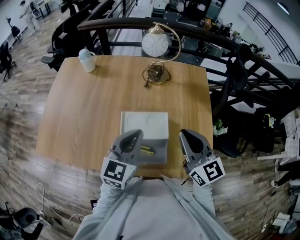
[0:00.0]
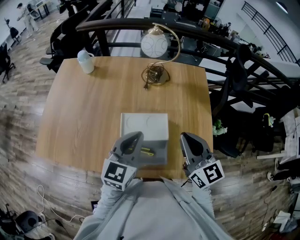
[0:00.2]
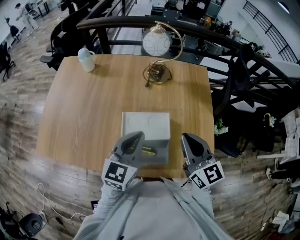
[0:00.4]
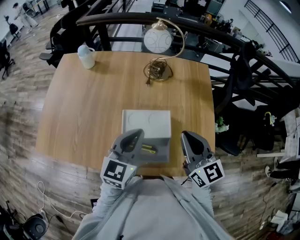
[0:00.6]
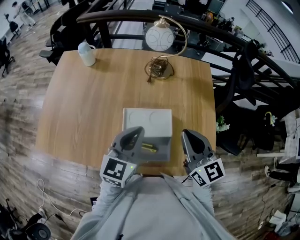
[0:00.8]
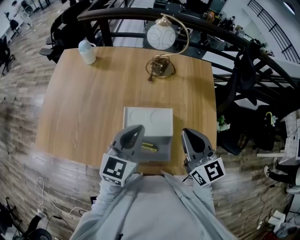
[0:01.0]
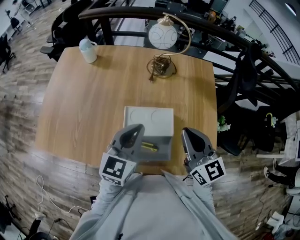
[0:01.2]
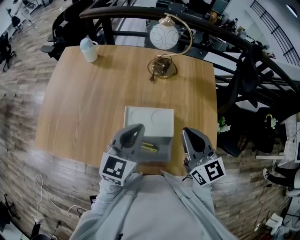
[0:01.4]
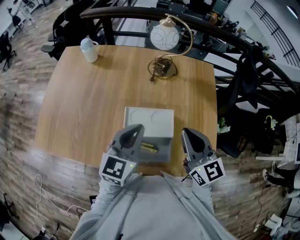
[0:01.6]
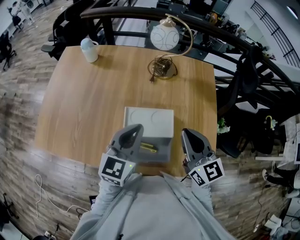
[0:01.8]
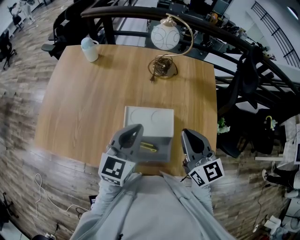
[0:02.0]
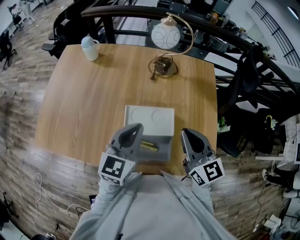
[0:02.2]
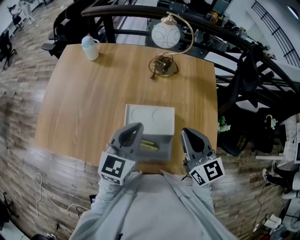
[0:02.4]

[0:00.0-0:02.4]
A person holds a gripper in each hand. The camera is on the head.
0:00.0 to 0:01.2: The grippers stay close to where they were, moving slightly.
0:01.2 to 0:02.4: The two grippers keep their place.

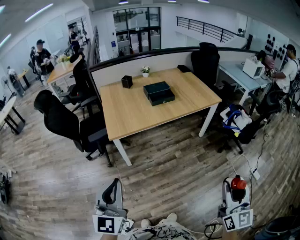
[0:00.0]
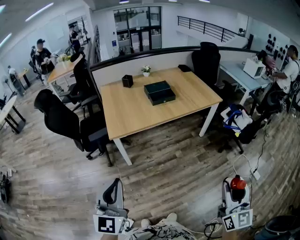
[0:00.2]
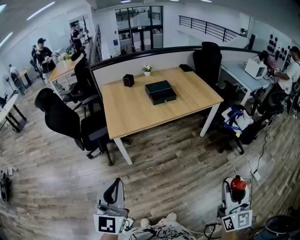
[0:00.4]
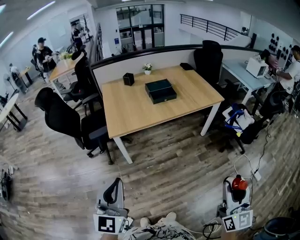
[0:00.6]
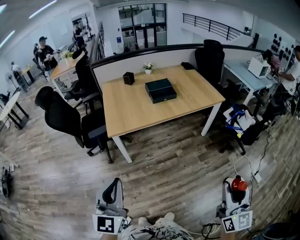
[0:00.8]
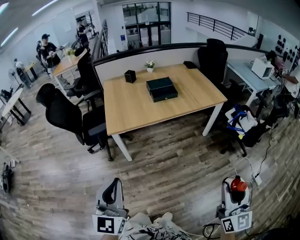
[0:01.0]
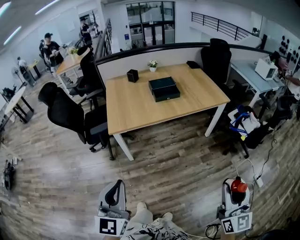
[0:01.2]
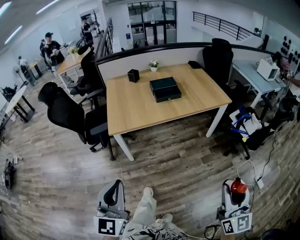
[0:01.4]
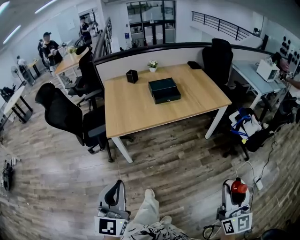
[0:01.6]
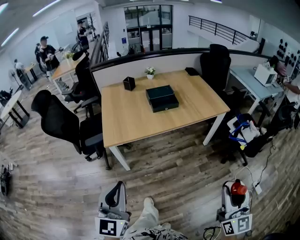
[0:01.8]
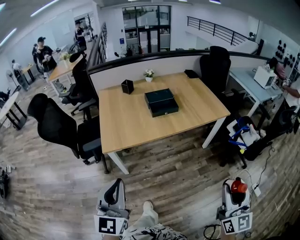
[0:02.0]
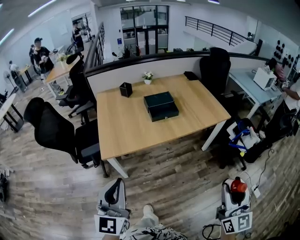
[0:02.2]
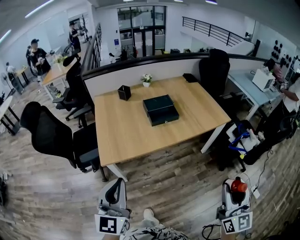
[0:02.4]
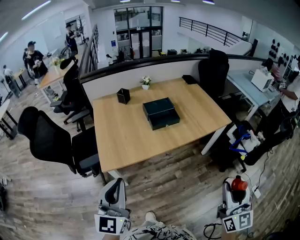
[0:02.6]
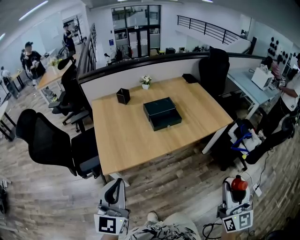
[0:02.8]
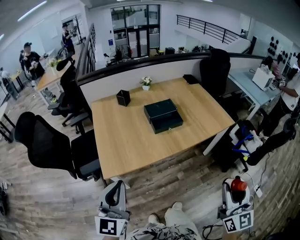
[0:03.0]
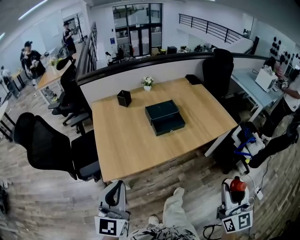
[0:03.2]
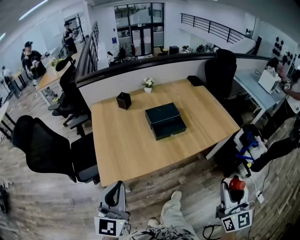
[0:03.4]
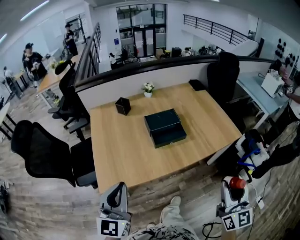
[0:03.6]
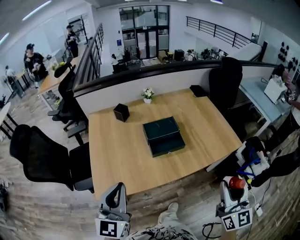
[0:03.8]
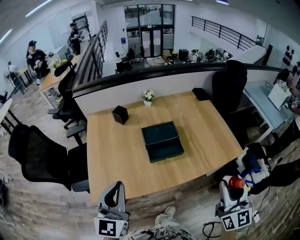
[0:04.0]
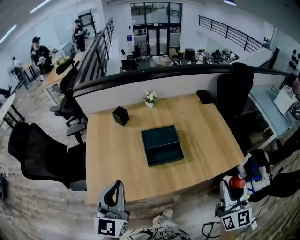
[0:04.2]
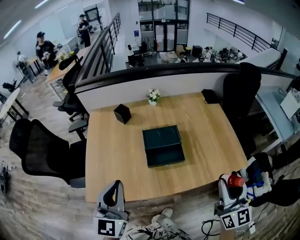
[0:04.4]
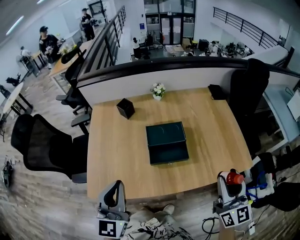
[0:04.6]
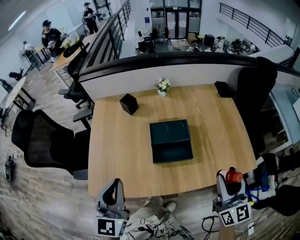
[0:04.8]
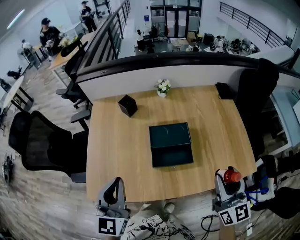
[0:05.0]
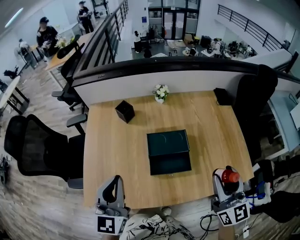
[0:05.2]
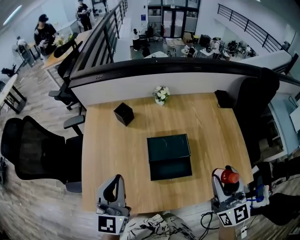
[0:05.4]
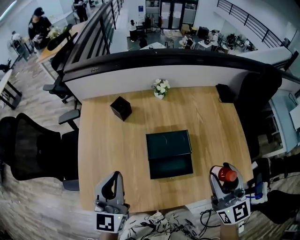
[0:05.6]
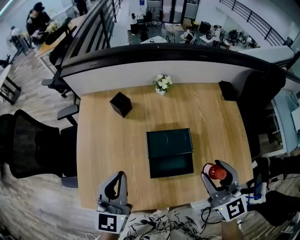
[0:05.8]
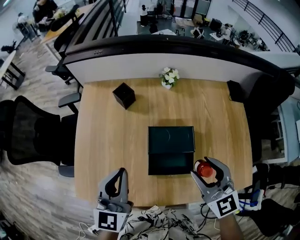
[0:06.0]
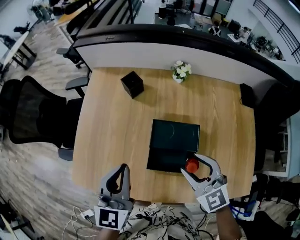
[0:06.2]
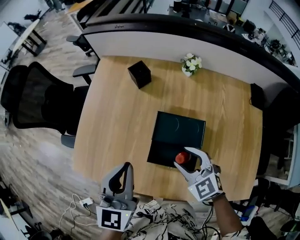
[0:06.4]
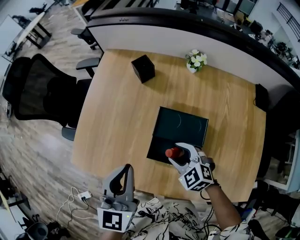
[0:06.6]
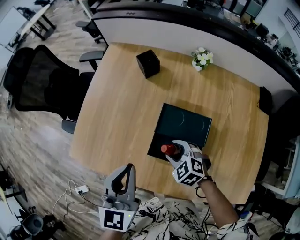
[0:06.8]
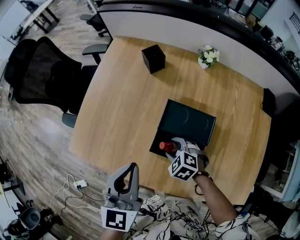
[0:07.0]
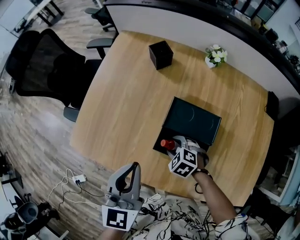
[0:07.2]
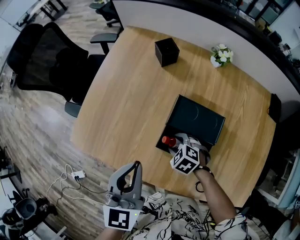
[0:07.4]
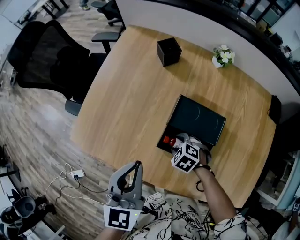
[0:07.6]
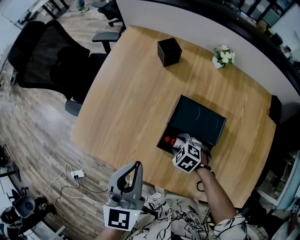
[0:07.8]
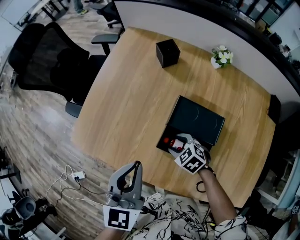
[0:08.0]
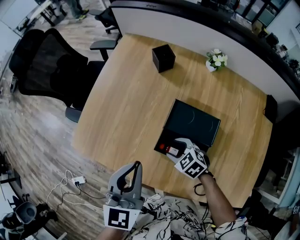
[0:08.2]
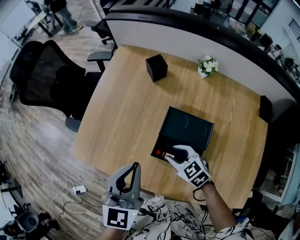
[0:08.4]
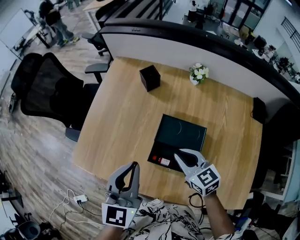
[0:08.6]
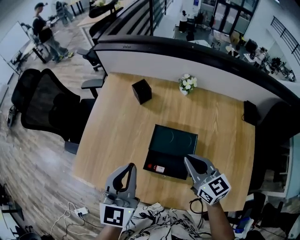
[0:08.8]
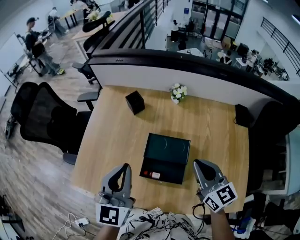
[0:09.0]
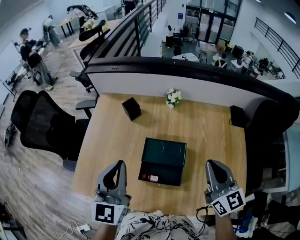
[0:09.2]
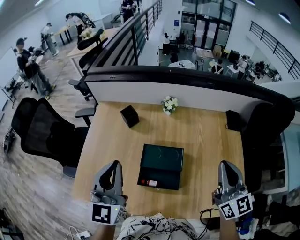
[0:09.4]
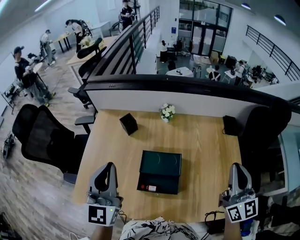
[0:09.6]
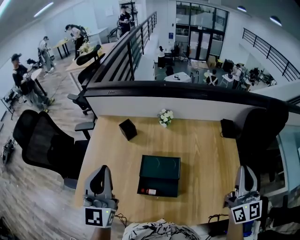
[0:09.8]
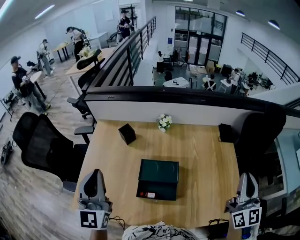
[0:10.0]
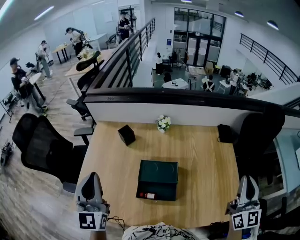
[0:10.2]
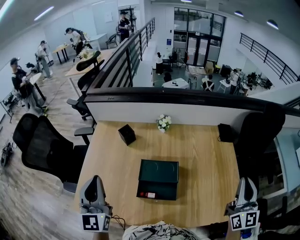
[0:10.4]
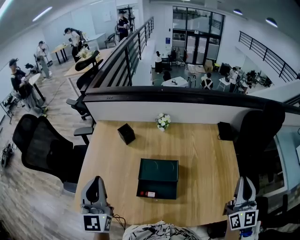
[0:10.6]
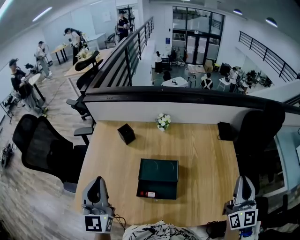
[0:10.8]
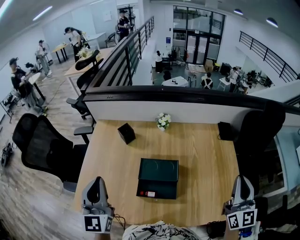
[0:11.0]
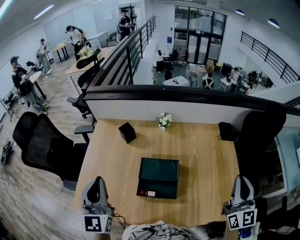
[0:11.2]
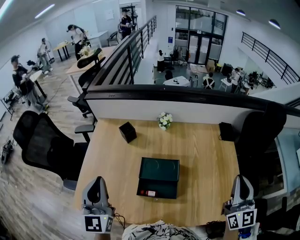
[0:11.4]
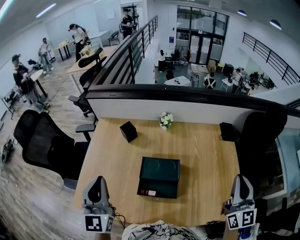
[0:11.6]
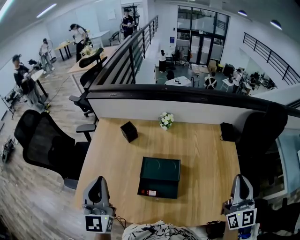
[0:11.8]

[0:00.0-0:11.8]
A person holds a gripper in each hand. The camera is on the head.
0:00.0 to 0:01.4: The right gripper shifts approximately 10 cm forward and to the right. Meanwhile the left gripper goes roughly 5 cm to the right.
0:01.4 to 0:03.0: Both grippers move forward, roughly 30 cm.
0:03.0 to 0:04.4: The grippers both shift forward by approximately 35 cm.
0:04.4 to 0:06.0: The right gripper moves forward and to the left, about 30 cm, and rotates about 40 degrees. Meanwhile the left gripper is displaced forward and downward by about 20 cm.
0:06.0 to 0:07.4: The left gripper changes place by some 10 cm, and changes its angle by roughly 20 degrees. Meanwhile the right gripper travels downward by about 30 cm, and tilts its fingers some 50 degrees downward.
0:07.4 to 0:08.8: The right gripper moves upward and to the right, about 30 cm, angles its fingers upward, by about 50 degrees, and closes. Meanwhile the left gripper moves upward and to the right, roughly 10 cm.
0:08.8 to 0:10.4: The left gripper goes approximately 10 cm upward and to the left. The right gripper is displaced to the right, upward and backward by about 35 cm, and turns by roughly 50 degrees.
0:10.4 to 0:11.8: The grippers stay close to where they were, moving slightly.

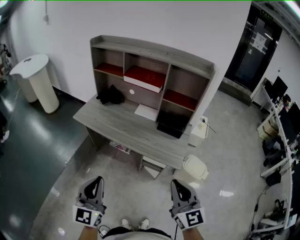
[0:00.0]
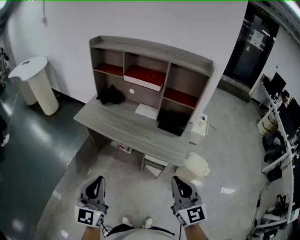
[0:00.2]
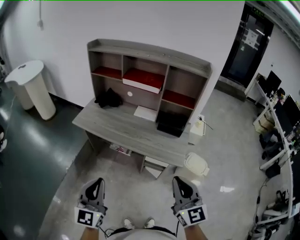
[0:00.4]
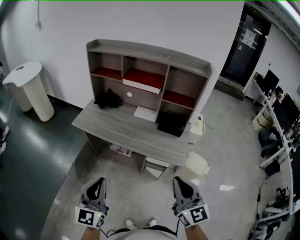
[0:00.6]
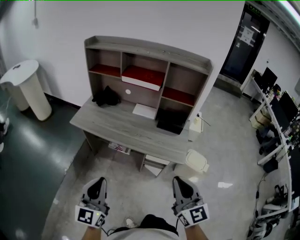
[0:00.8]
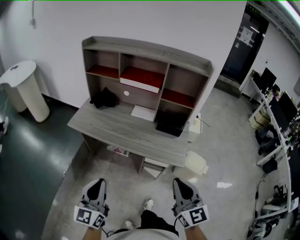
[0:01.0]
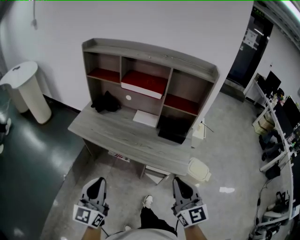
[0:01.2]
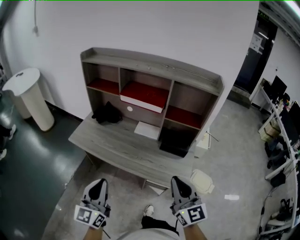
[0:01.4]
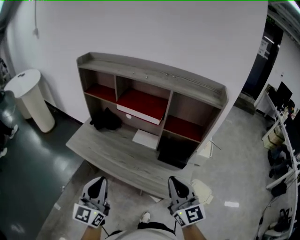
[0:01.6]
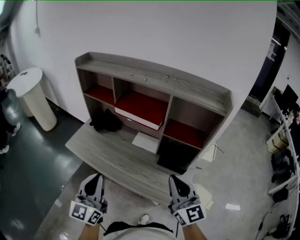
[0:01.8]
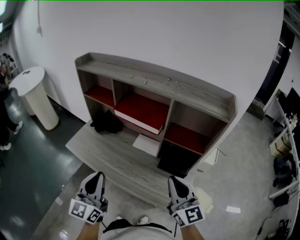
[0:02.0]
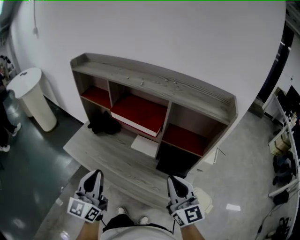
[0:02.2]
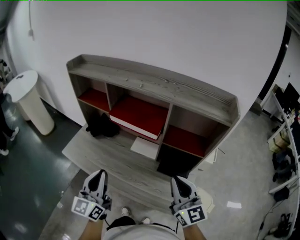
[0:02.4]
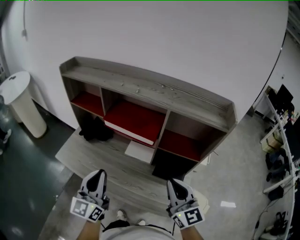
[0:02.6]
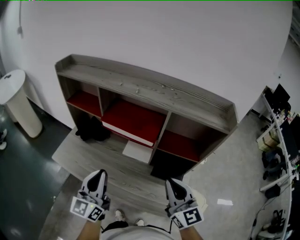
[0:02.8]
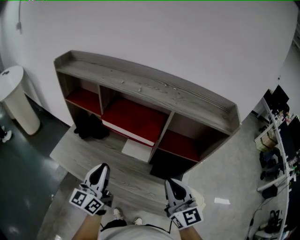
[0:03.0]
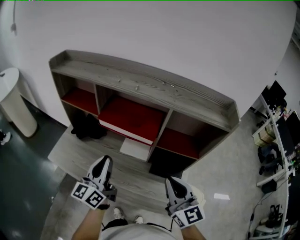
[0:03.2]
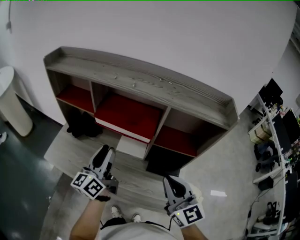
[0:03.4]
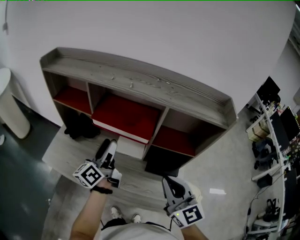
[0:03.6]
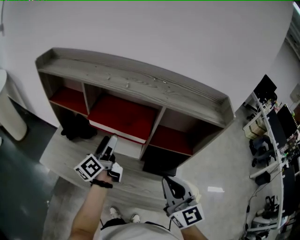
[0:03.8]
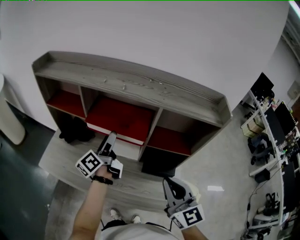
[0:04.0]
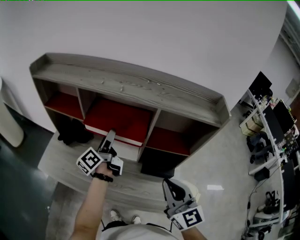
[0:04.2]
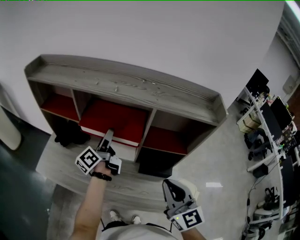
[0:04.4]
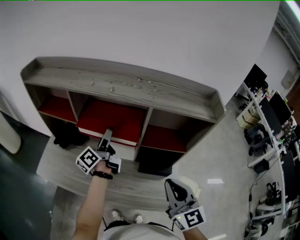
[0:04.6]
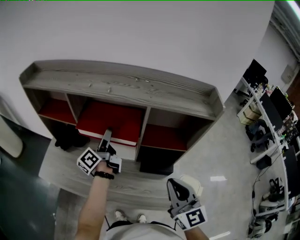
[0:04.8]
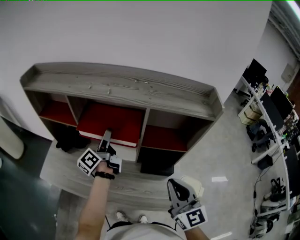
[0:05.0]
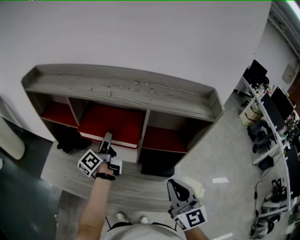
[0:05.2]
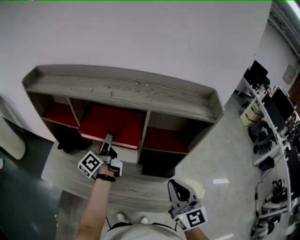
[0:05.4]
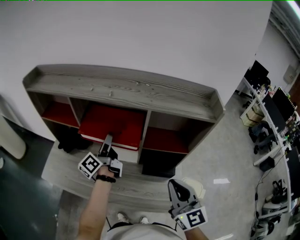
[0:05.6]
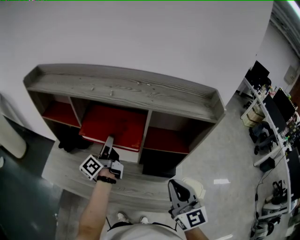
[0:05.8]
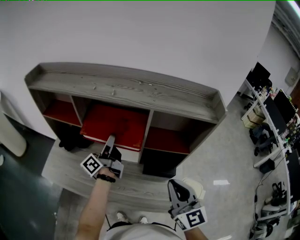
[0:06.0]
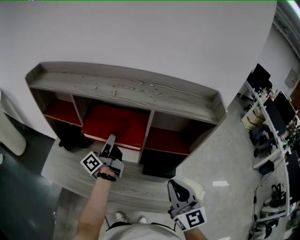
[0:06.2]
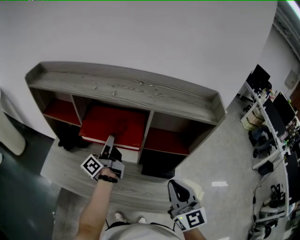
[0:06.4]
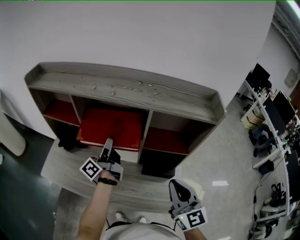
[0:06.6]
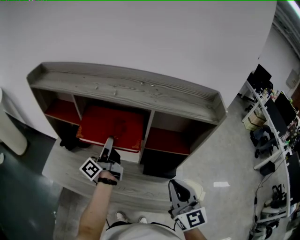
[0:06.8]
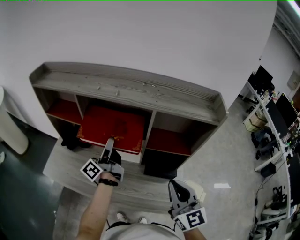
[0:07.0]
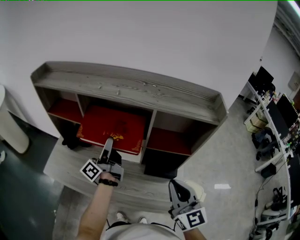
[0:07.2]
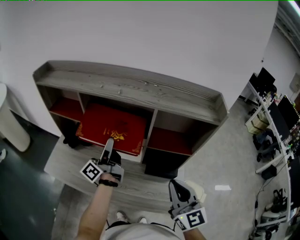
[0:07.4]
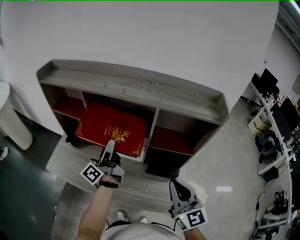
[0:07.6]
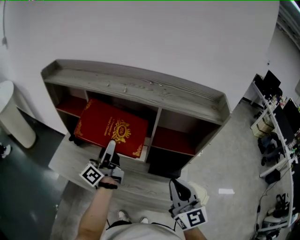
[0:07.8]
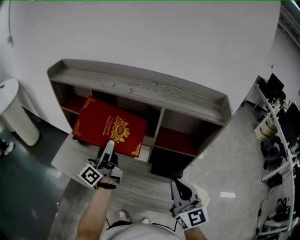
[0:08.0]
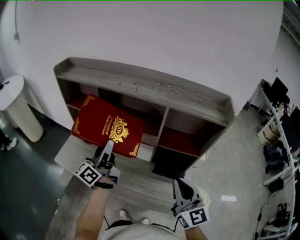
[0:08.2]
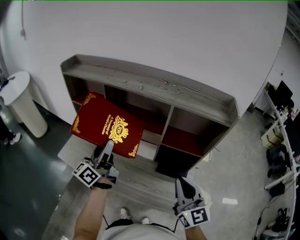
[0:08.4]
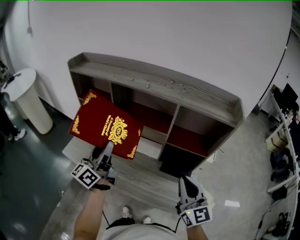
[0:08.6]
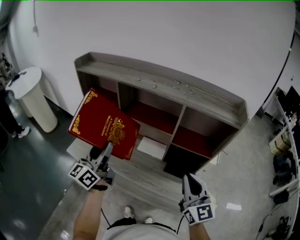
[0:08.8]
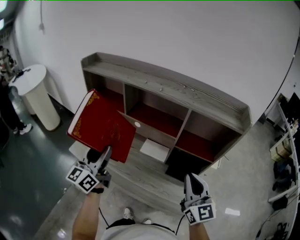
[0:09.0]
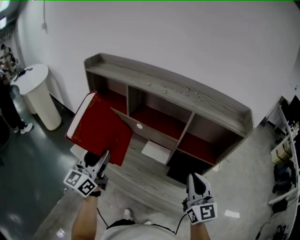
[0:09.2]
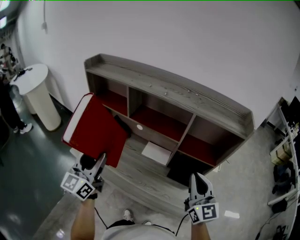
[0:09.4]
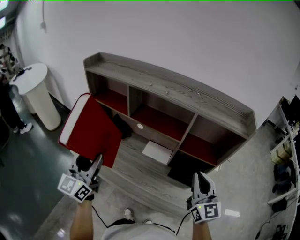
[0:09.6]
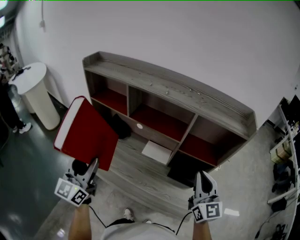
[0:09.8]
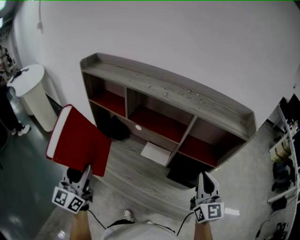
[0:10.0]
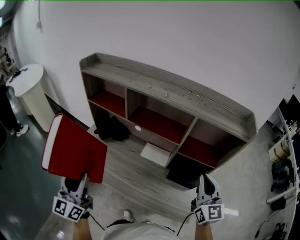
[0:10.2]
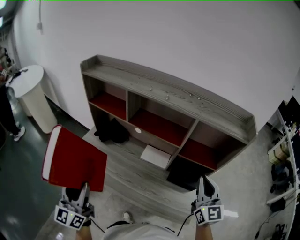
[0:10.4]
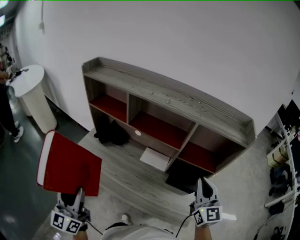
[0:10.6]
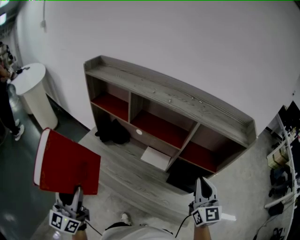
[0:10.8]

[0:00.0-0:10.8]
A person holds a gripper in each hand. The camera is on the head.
0:00.0 to 0:01.6: Both grippers move forward, approximately 25 cm.
0:01.6 to 0:03.0: The grippers both shift forward by approximately 15 cm. The left gripper rotates some 20 degrees.
0:03.0 to 0:04.6: The left gripper travels forward by approximately 20 cm, rolls counterclockwise, seen from behind, by some 40 degrees, and opens up.
0:04.6 to 0:06.2: The grippers stay close to where they were, moving slightly.
0:06.2 to 0:07.8: The left gripper shifts approximately 10 cm backward.
0:07.8 to 0:09.2: The left gripper moves to the left and backward, approximately 20 cm, and rolls clockwise, seen from behind, by approximately 50 degrees.
0:09.2 to 0:10.8: The left gripper heads backward and to the left, covering roughly 15 cm.
